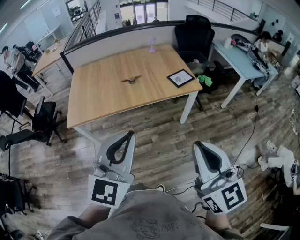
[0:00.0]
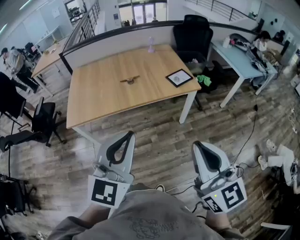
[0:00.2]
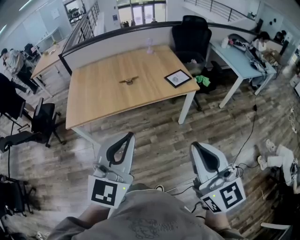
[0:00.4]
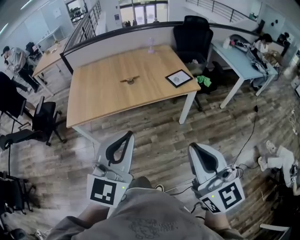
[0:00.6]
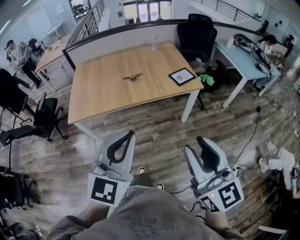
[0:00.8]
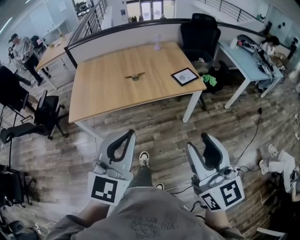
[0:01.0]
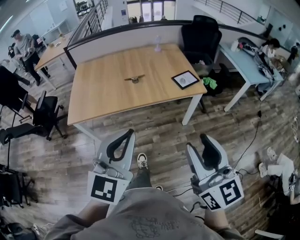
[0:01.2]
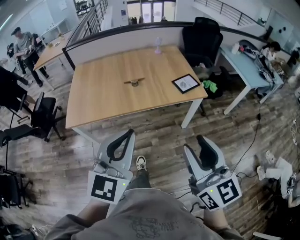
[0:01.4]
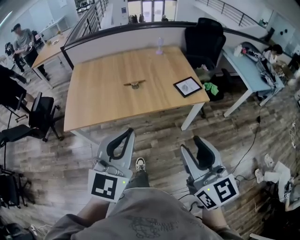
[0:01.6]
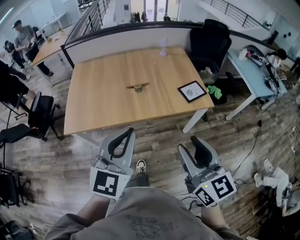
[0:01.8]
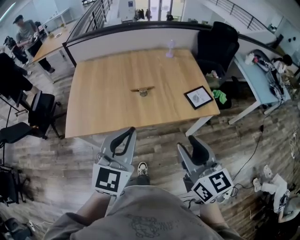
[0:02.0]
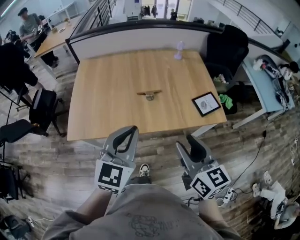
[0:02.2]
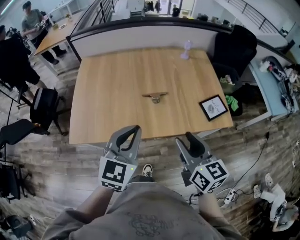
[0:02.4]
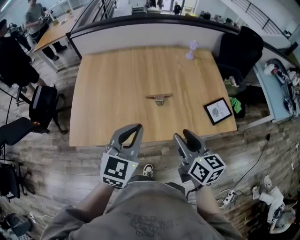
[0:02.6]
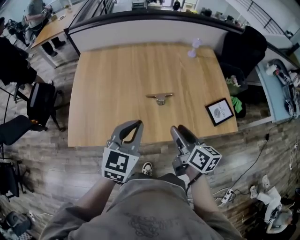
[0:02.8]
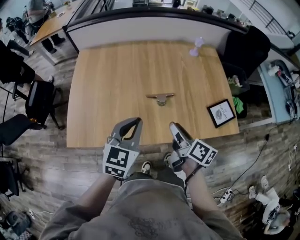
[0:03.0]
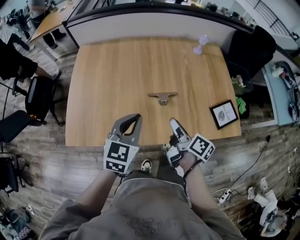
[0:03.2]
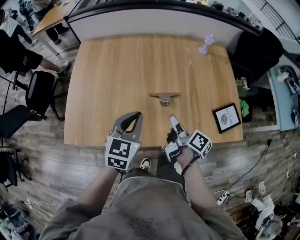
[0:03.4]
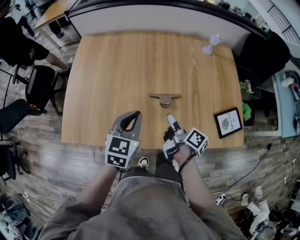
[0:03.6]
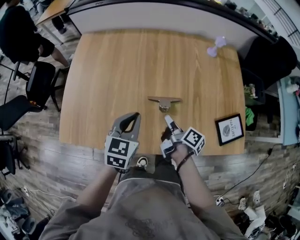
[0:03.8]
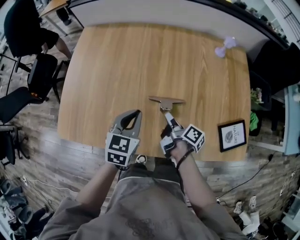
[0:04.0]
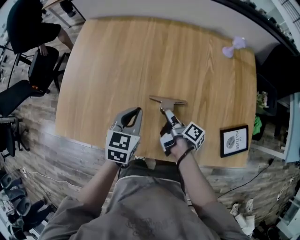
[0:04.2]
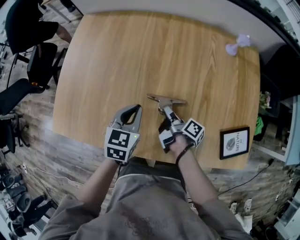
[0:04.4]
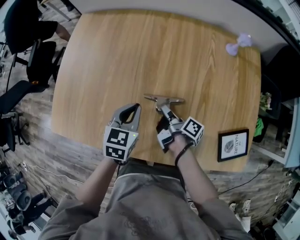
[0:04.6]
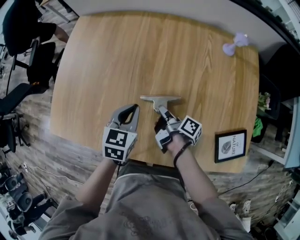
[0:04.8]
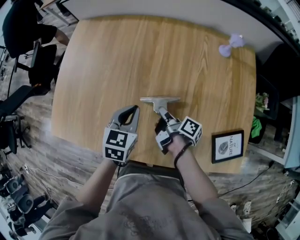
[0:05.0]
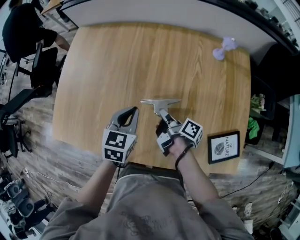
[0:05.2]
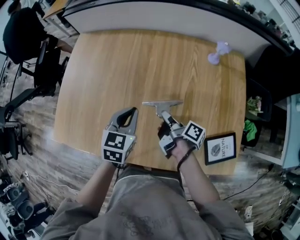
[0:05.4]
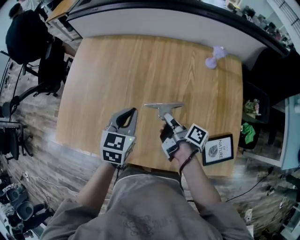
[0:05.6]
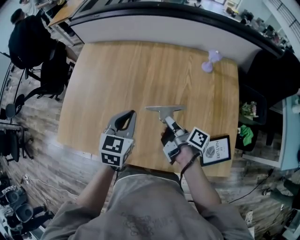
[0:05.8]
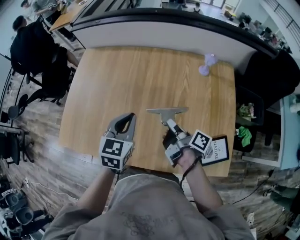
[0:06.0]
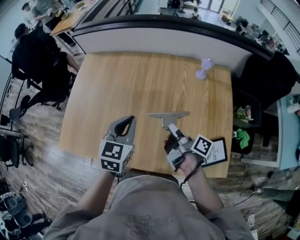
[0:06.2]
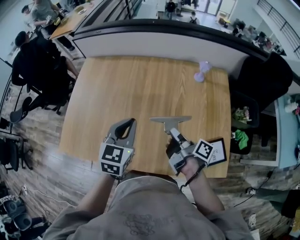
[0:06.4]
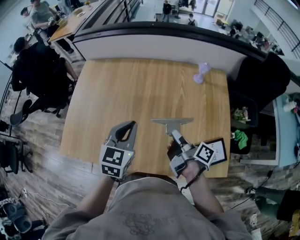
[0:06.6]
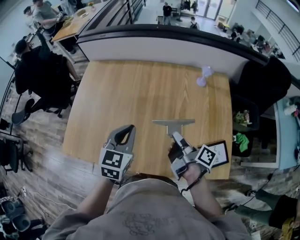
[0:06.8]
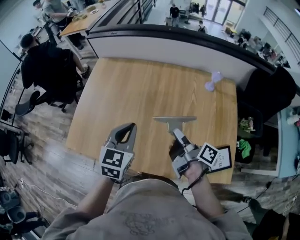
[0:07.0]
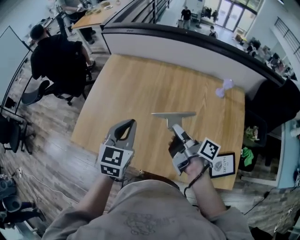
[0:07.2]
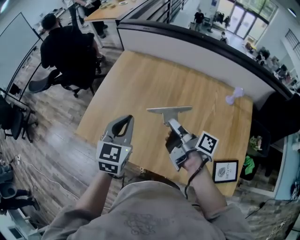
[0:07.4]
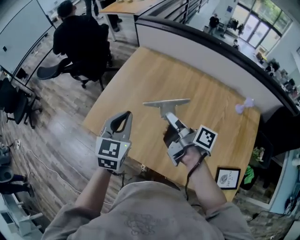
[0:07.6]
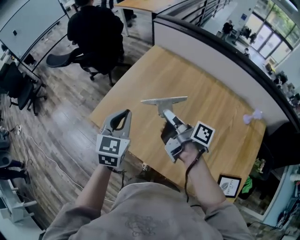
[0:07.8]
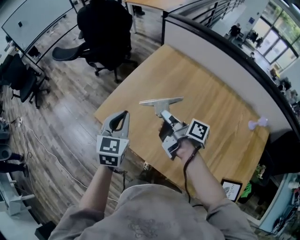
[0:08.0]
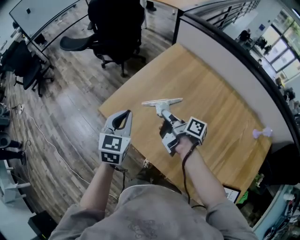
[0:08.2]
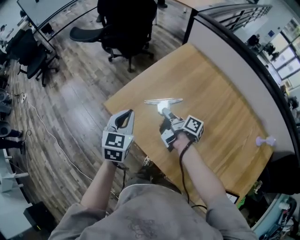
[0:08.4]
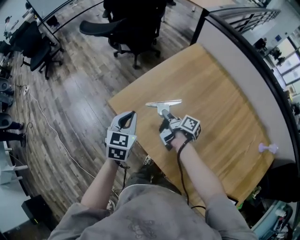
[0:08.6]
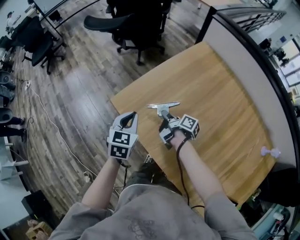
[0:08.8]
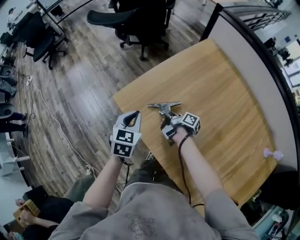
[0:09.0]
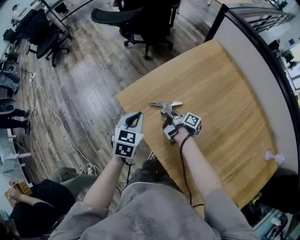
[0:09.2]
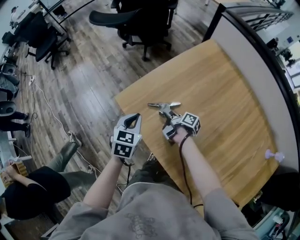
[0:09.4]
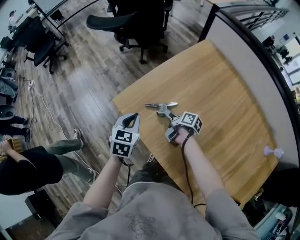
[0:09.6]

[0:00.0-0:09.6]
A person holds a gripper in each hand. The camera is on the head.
0:00.0 to 0:01.6: Both grippers travel together forward, roughly 15 cm. The right gripper opens up.
0:01.6 to 0:03.2: The pair of grippers is taken forward, roughly 40 cm. Both grippers move downward, some 20 cm. The right gripper rolls clockwise, seen from behind, by about 60 degrees; the left gripper turns by some 20 degrees.
0:03.2 to 0:04.8: The left gripper moves downward and forward, some 25 cm, and changes its angle by roughly 20 degrees; the right gripper heads forward and downward, covering approximately 25 cm, changes its angle by some 30 degrees, and closes its fingers.
0:04.8 to 0:06.4: The right gripper travels upward and to the right by about 25 cm; the left gripper is displaced upward by roughly 20 cm.
0:06.4 to 0:08.0: The left gripper ends up some 35 cm from where it was, and changes its angle by approximately 30 degrees, while the right gripper shifts by some 40 cm, and swivels roughly 40 degrees.
0:08.0 to 0:09.6: The left gripper shifts roughly 20 cm downward and to the left, and rotates approximately 20 degrees, while the right gripper shifts approximately 25 cm downward, to the left and forward, changes its angle by some 30 degrees, and opens its fingers.

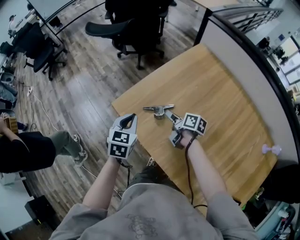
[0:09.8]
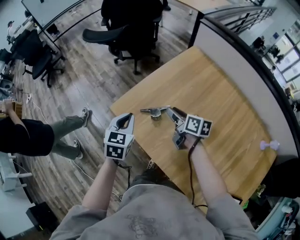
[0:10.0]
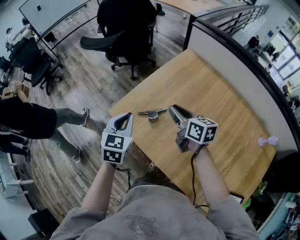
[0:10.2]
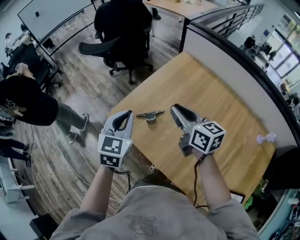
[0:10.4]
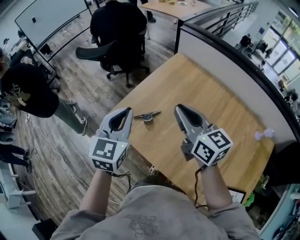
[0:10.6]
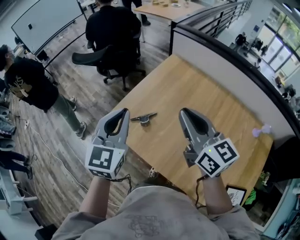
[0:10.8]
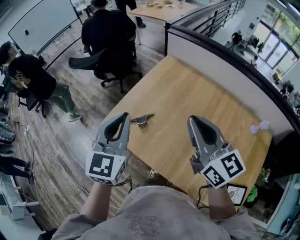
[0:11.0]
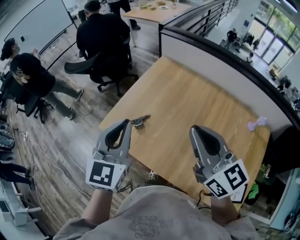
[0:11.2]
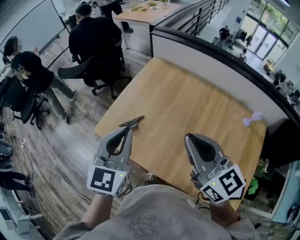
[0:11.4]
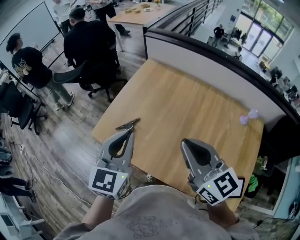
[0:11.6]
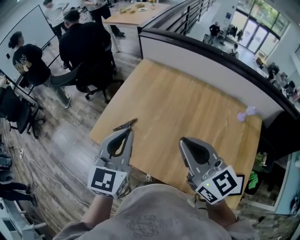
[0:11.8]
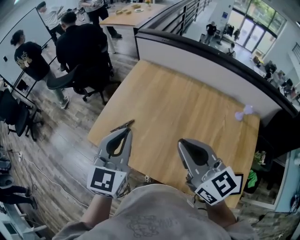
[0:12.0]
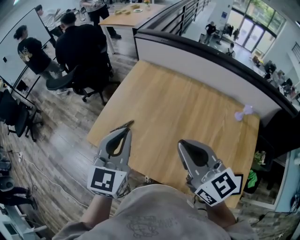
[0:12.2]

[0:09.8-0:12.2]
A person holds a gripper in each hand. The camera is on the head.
0:09.8 to 0:11.0: The right gripper heads upward and backward, covering some 40 cm, rolls counterclockwise, seen from behind, by approximately 50 degrees, and closes up. The left gripper shifts about 25 cm upward, and changes its angle by about 30 degrees.
0:11.0 to 0:12.2: The left gripper goes roughly 10 cm to the right. The right gripper is displaced backward and to the right by some 10 cm.

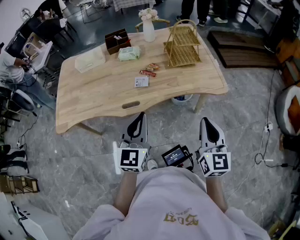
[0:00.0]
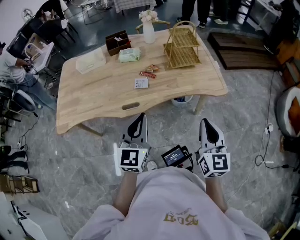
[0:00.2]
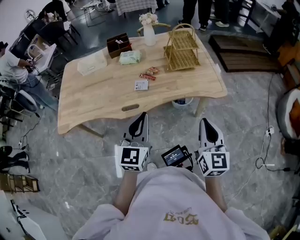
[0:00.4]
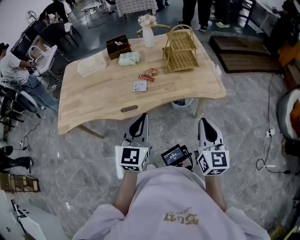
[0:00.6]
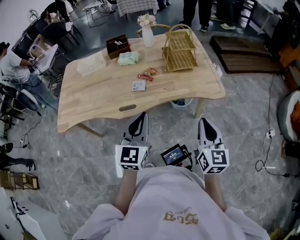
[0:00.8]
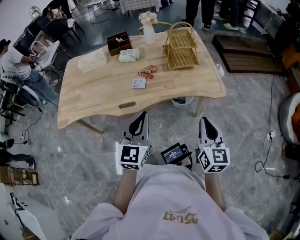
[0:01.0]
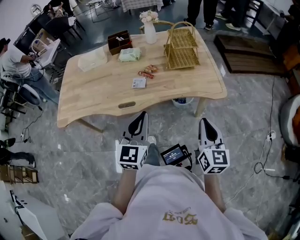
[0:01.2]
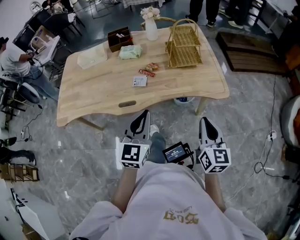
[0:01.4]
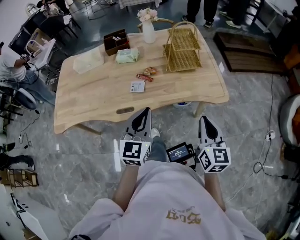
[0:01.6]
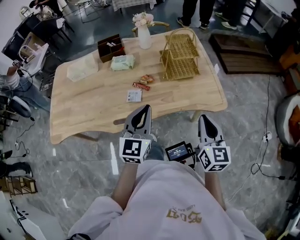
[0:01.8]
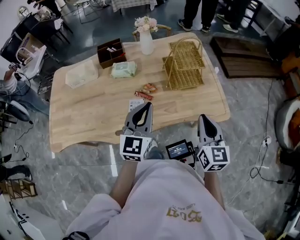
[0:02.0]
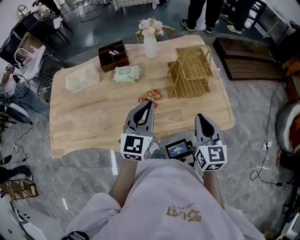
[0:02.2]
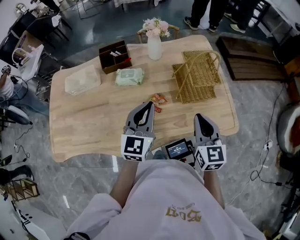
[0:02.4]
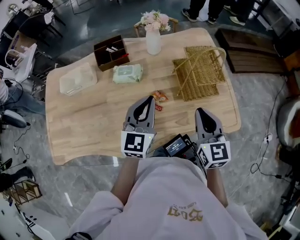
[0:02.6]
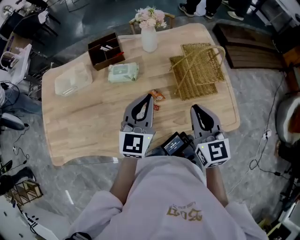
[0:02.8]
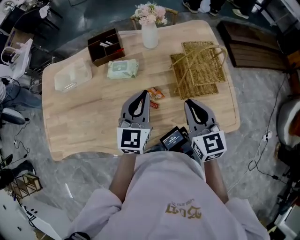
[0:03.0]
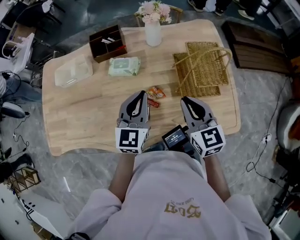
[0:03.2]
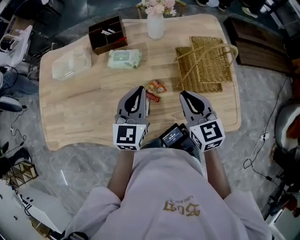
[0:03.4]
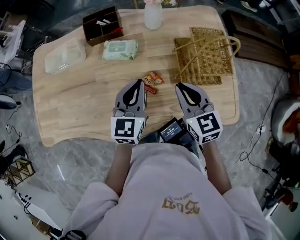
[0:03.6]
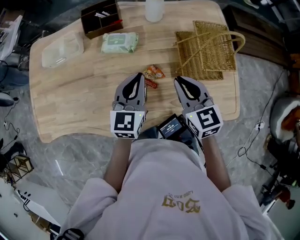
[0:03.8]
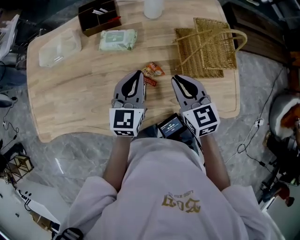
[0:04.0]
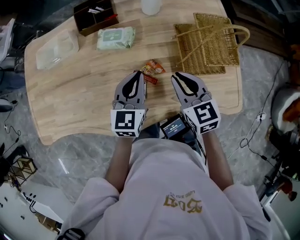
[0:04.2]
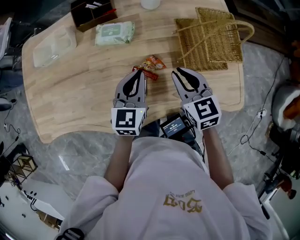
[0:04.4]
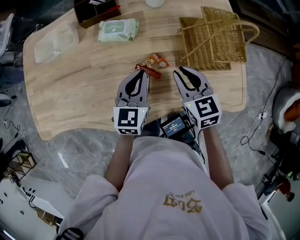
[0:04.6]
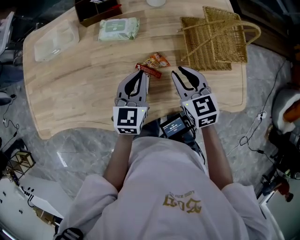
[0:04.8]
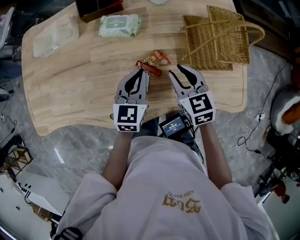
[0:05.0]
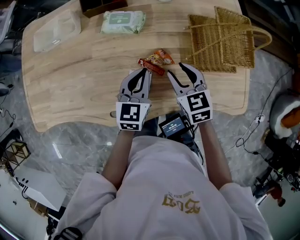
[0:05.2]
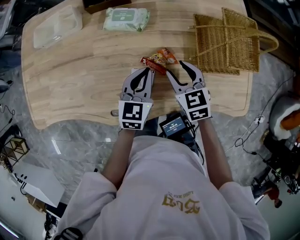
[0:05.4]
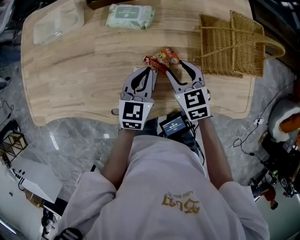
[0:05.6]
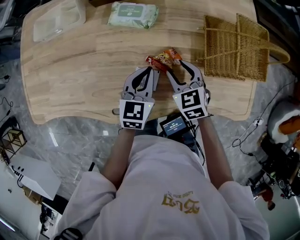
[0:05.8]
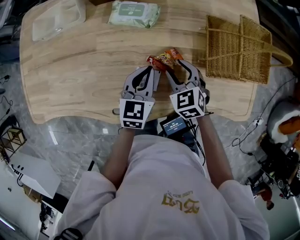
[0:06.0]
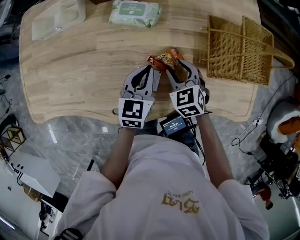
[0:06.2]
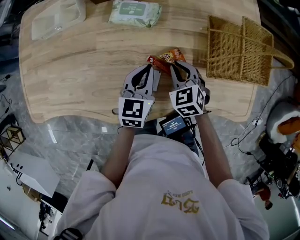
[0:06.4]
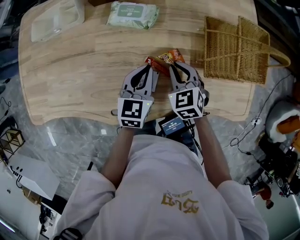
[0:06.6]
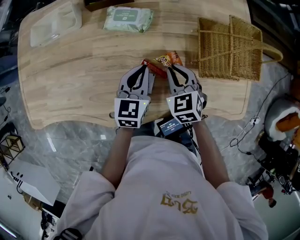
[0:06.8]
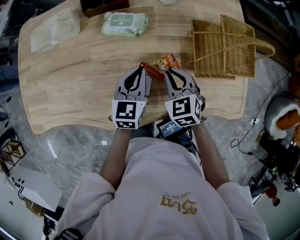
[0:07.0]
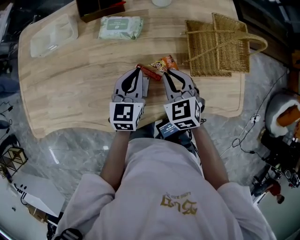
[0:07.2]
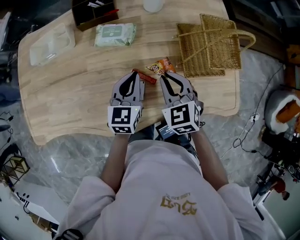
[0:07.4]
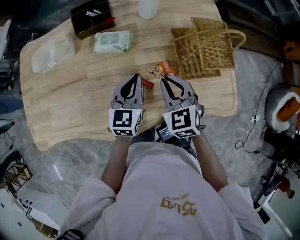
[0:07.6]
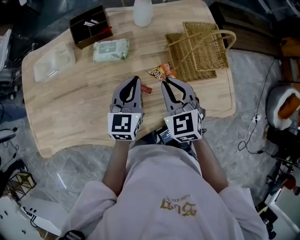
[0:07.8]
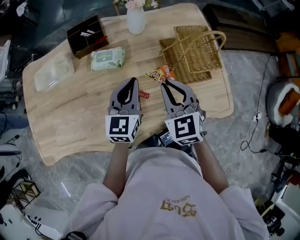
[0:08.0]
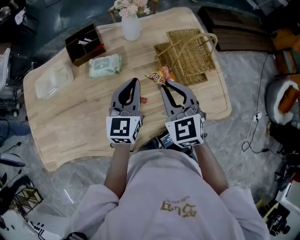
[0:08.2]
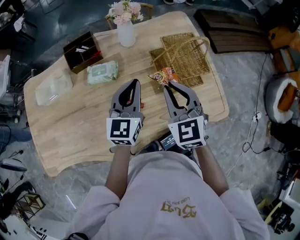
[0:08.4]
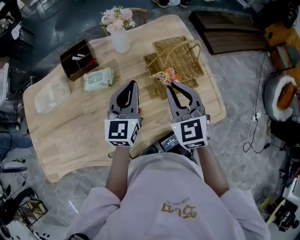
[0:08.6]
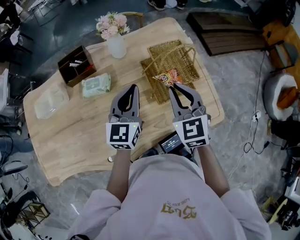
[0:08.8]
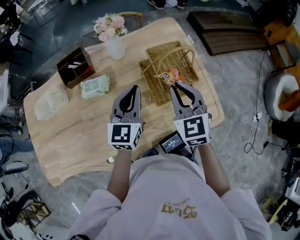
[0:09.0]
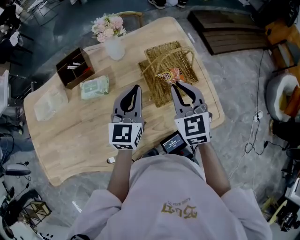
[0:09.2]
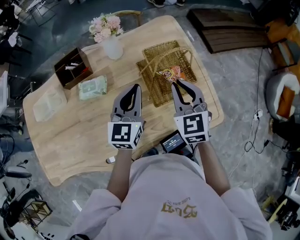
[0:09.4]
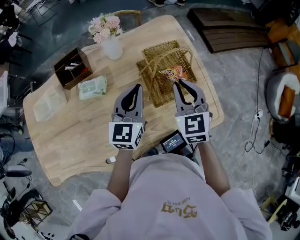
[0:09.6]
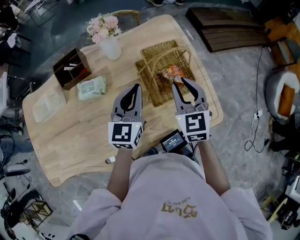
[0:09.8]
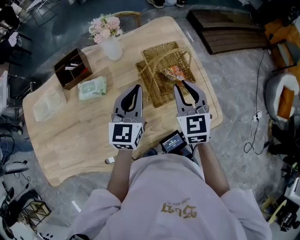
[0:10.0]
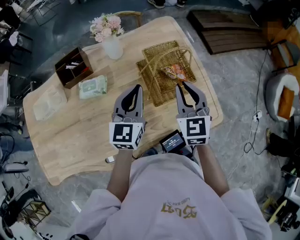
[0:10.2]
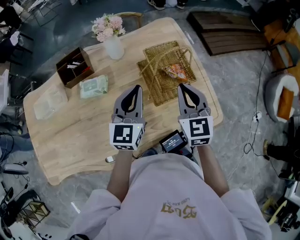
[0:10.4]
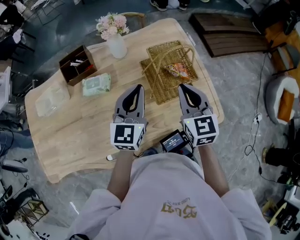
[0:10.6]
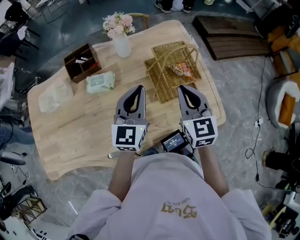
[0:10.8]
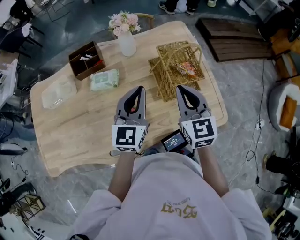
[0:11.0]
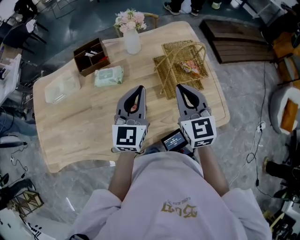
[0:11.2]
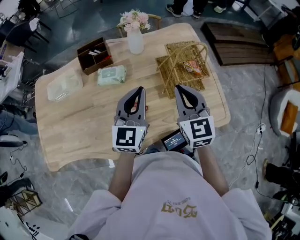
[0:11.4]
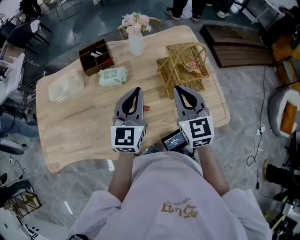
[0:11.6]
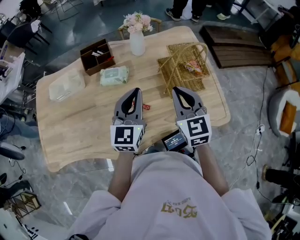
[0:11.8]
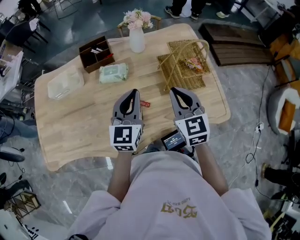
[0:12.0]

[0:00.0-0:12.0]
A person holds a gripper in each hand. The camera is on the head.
0:00.0 to 0:01.6: Both grippers travel together forward and to the right, about 10 cm.
0:01.6 to 0:03.0: The right gripper is displaced forward and to the left by approximately 35 cm, while the left gripper is displaced forward by some 30 cm.
0:03.0 to 0:04.4: The right gripper heads downward and to the left, covering roughly 10 cm. The left gripper is displaced downward by approximately 10 cm.
0:04.4 to 0:06.0: The left gripper shifts roughly 10 cm downward; the right gripper moves downward and to the left, approximately 15 cm, changes its angle by some 30 degrees, and opens.
0:06.0 to 0:07.6: The right gripper goes about 15 cm upward, and closes its fingers, while the left gripper is displaced upward by about 10 cm.
0:07.6 to 0:09.0: The right gripper is displaced to the right and upward by roughly 20 cm; the left gripper travels to the right, upward and forward by about 15 cm.
0:09.0 to 0:10.4: There are only small adjustments of the grippers.
0:10.4 to 0:12.0: The grippers both shift to the left and backward by about 15 cm.
